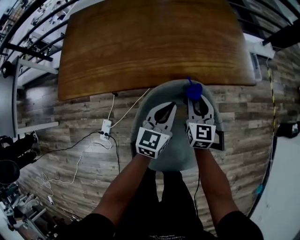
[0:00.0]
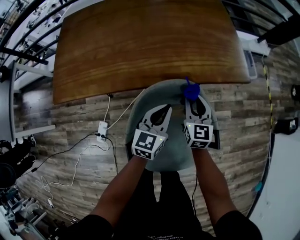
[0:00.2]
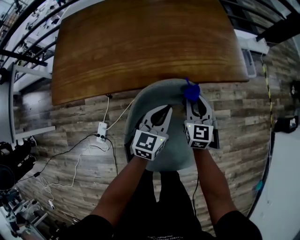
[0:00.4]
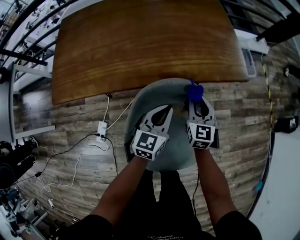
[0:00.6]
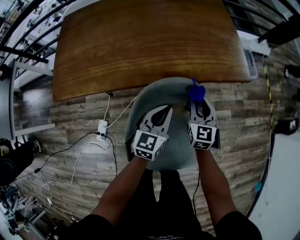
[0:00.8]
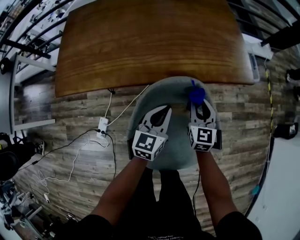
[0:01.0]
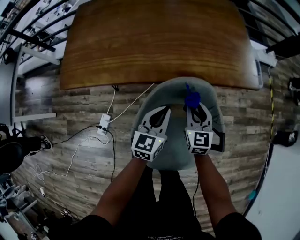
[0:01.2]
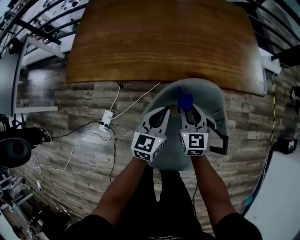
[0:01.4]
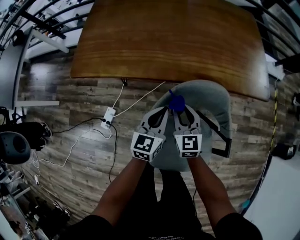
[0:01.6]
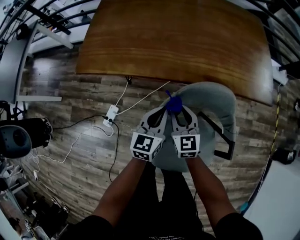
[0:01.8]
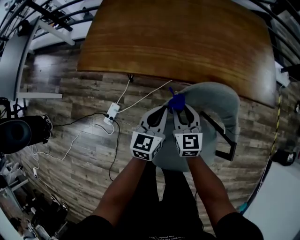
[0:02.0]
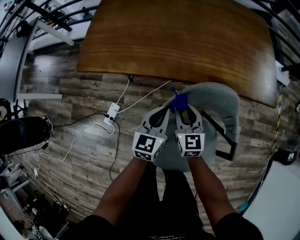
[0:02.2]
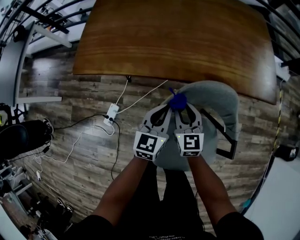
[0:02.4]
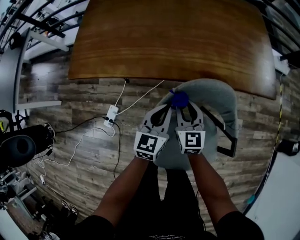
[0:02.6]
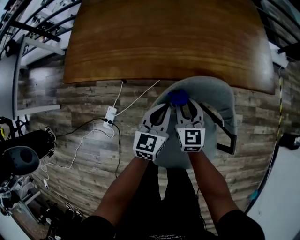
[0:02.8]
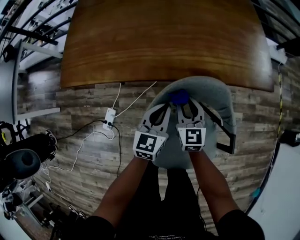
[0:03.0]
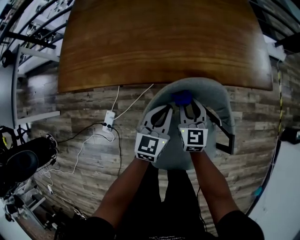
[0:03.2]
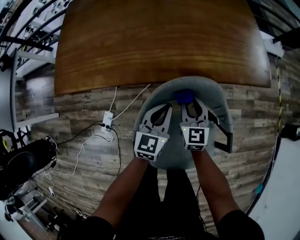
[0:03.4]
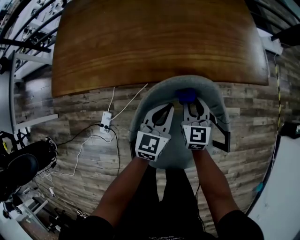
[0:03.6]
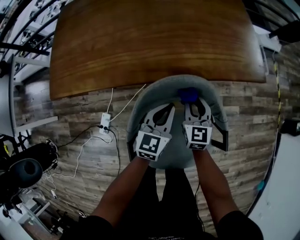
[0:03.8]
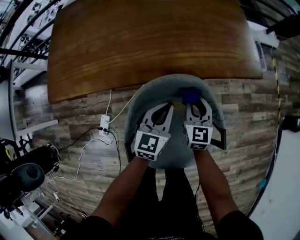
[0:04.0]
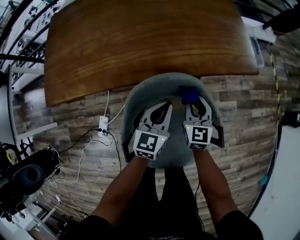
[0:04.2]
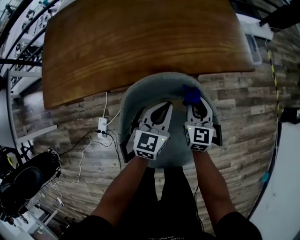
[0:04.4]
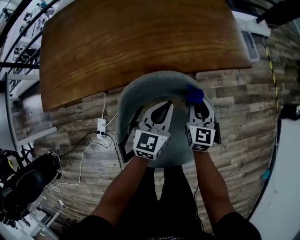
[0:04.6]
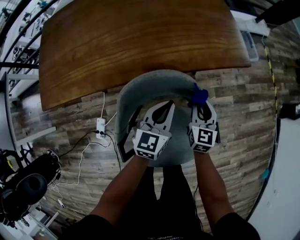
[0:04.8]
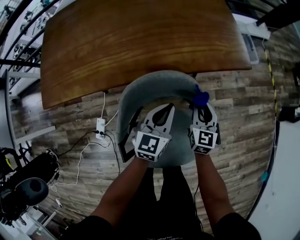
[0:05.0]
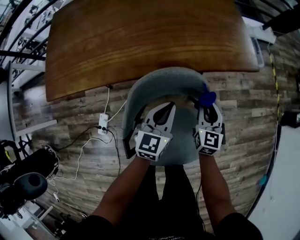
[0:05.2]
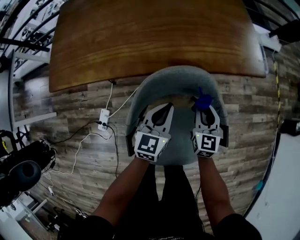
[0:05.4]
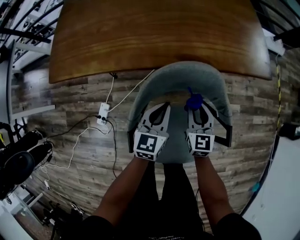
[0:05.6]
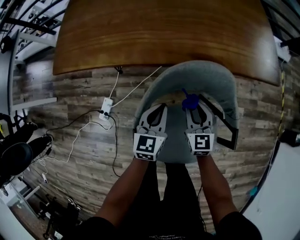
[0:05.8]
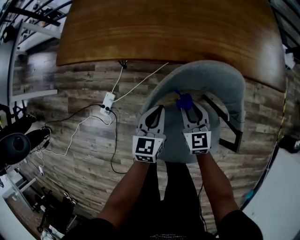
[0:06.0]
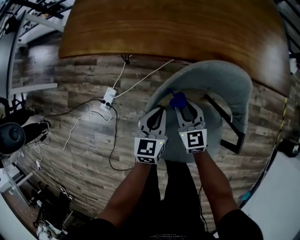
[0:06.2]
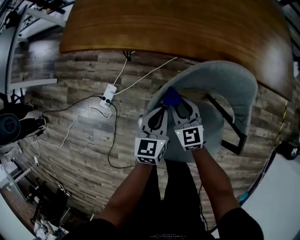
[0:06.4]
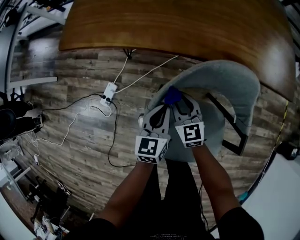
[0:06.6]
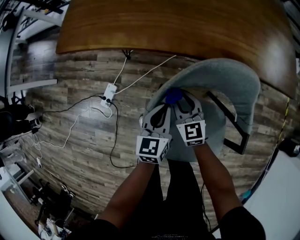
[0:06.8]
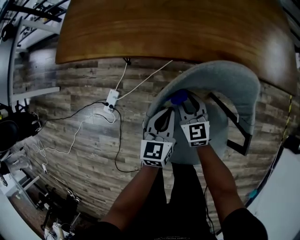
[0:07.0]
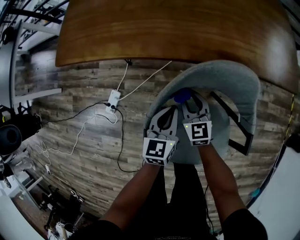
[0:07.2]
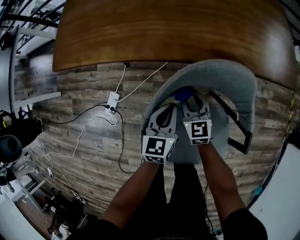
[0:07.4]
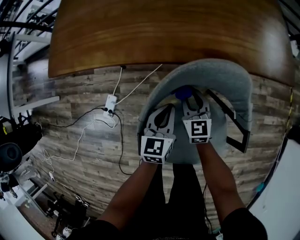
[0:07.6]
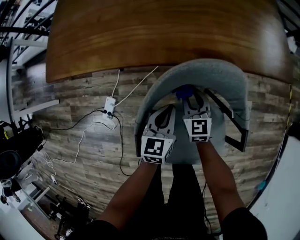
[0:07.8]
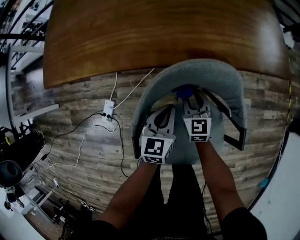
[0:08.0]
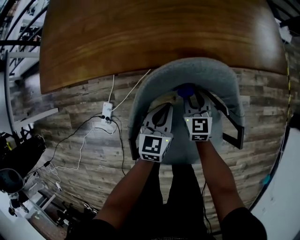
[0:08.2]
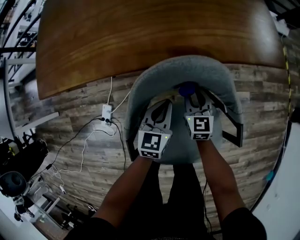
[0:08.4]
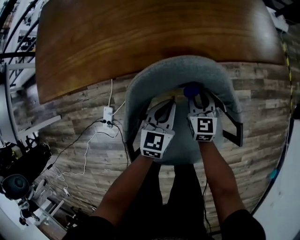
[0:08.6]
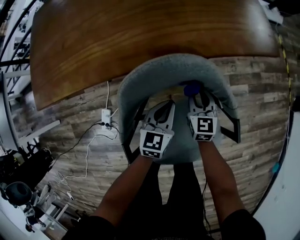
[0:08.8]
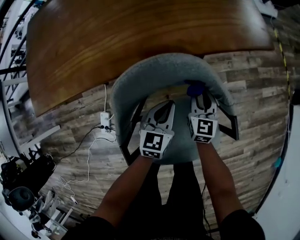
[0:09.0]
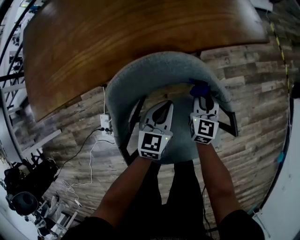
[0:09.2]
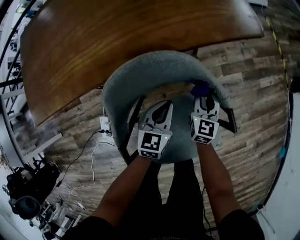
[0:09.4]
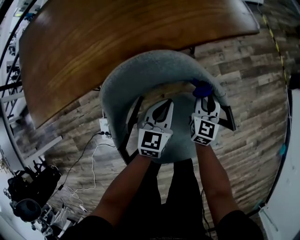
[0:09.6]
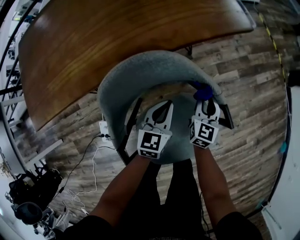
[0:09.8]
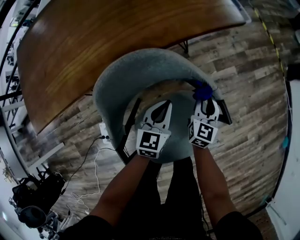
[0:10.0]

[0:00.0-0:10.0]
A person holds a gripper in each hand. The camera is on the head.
0:00.0 to 0:01.4: The left gripper travels to the left by roughly 5 cm. Meanwhile the right gripper moves to the left and backward, approximately 10 cm.
0:01.4 to 0:02.8: The left gripper goes to the left and returns, some 10 cm each way. Meanwhile the right gripper is displaced to the left by approximately 5 cm.
0:02.8 to 0:04.2: Both grippers travel together to the right, roughly 15 cm.
0:04.2 to 0:05.8: Both grippers travel together to the left and backward, roughly 10 cm.
0:05.8 to 0:07.2: The right gripper heads to the left, covering about 10 cm.
0:07.2 to 0:08.6: The grippers both shift to the right by roughly 15 cm. The left gripper changes its angle by some 20 degrees. The right gripper turns by about 20 degrees.
0:08.6 to 0:10.0: The right gripper moves approximately 20 cm, and rotates approximately 40 degrees. Meanwhile the left gripper ends up roughly 10 cm from where it was.

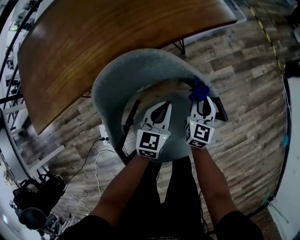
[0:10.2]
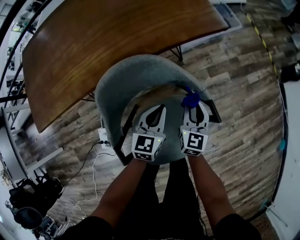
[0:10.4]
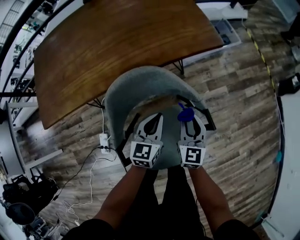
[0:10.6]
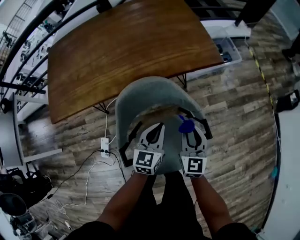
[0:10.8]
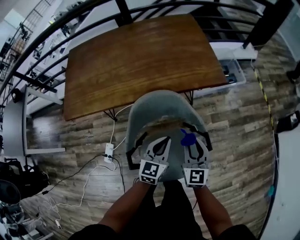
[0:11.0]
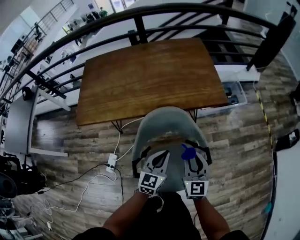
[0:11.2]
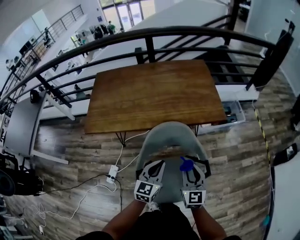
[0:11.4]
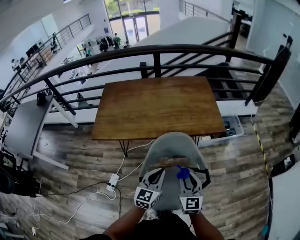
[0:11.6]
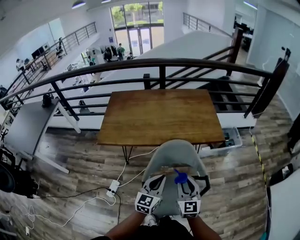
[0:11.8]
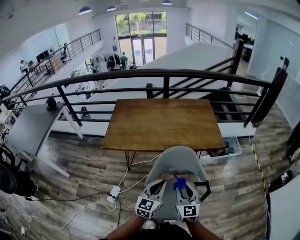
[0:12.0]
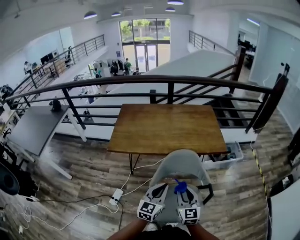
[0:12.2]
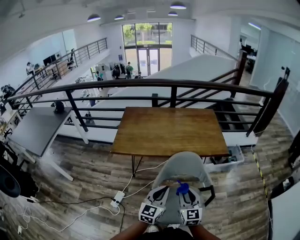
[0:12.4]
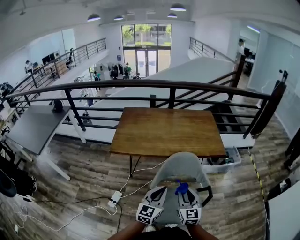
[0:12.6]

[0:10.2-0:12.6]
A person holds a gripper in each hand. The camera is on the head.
0:10.2 to 0:11.4: Both grippers travel together upward, about 25 cm. The right gripper changes its angle by about 40 degrees. The left gripper turns by about 20 degrees.
0:11.4 to 0:12.6: The right gripper moves to the left, backward and upward, about 20 cm, while the left gripper shifts some 20 cm backward, upward and to the left.

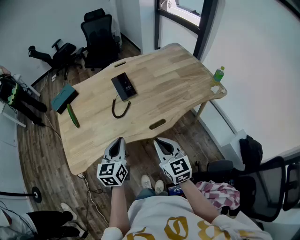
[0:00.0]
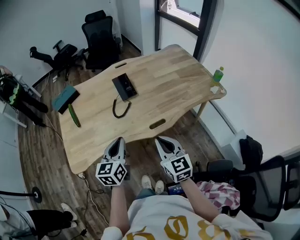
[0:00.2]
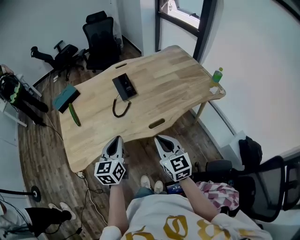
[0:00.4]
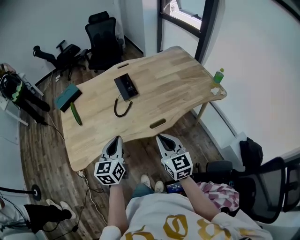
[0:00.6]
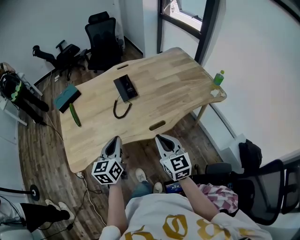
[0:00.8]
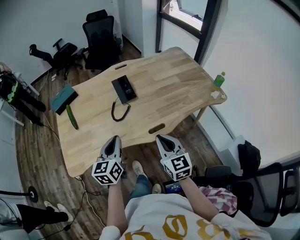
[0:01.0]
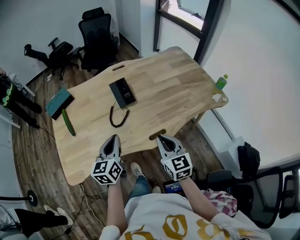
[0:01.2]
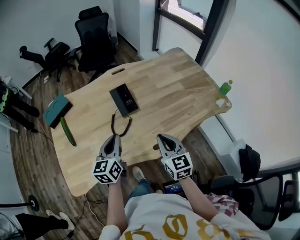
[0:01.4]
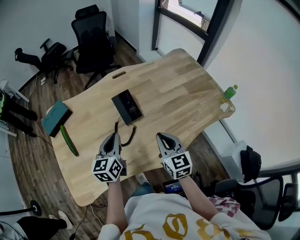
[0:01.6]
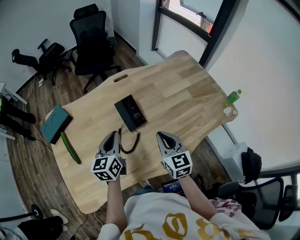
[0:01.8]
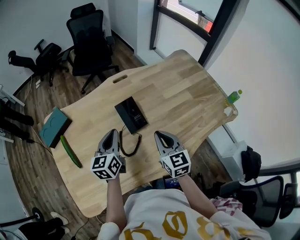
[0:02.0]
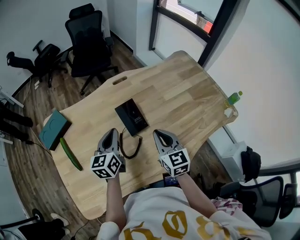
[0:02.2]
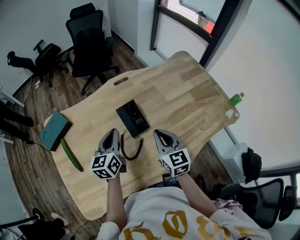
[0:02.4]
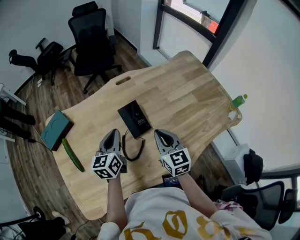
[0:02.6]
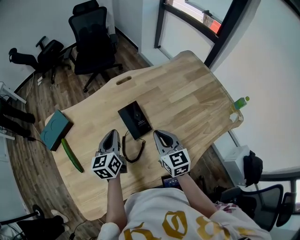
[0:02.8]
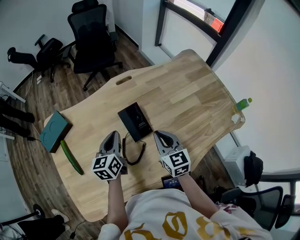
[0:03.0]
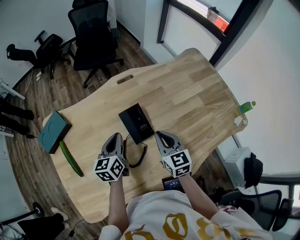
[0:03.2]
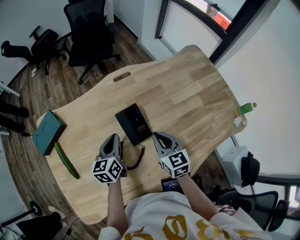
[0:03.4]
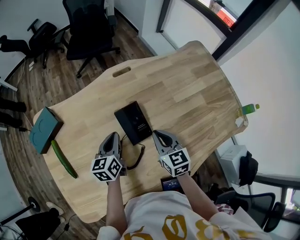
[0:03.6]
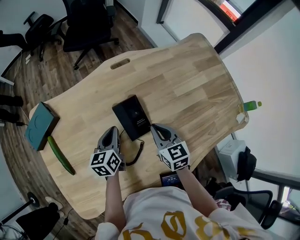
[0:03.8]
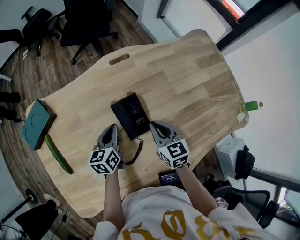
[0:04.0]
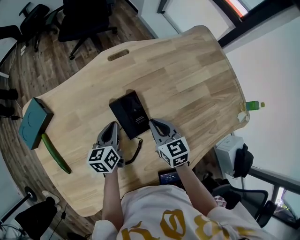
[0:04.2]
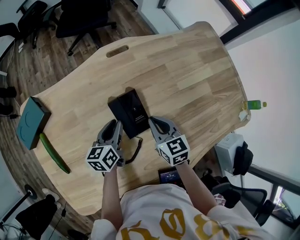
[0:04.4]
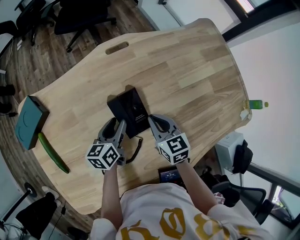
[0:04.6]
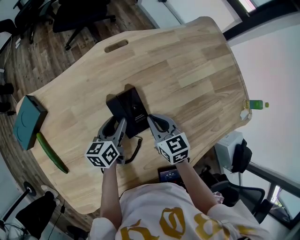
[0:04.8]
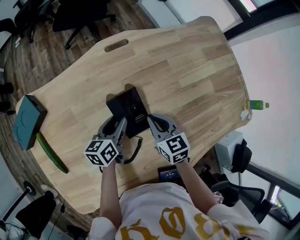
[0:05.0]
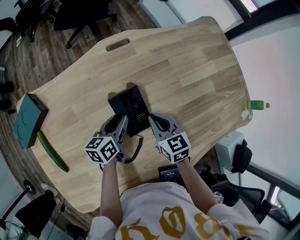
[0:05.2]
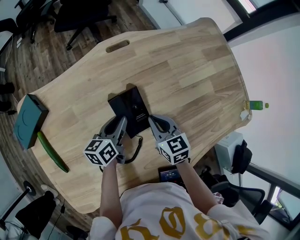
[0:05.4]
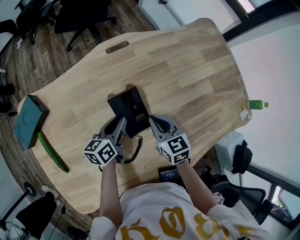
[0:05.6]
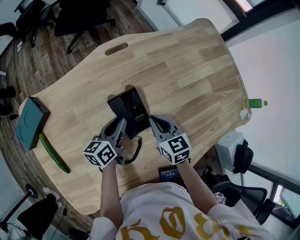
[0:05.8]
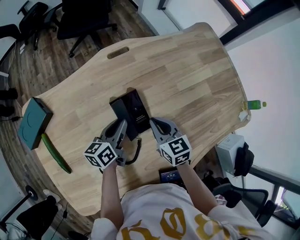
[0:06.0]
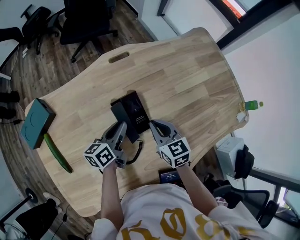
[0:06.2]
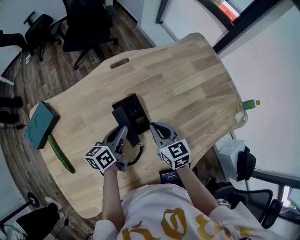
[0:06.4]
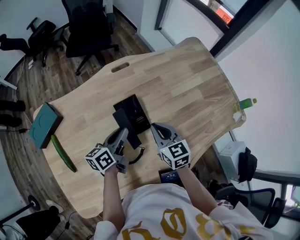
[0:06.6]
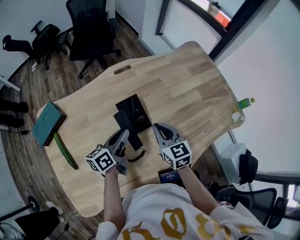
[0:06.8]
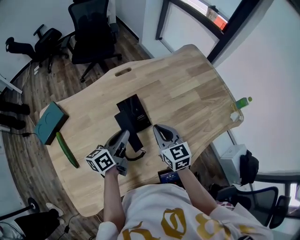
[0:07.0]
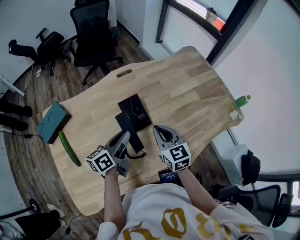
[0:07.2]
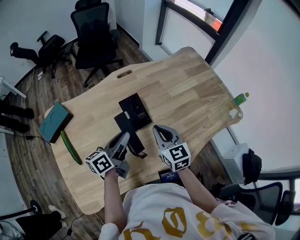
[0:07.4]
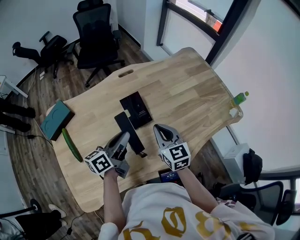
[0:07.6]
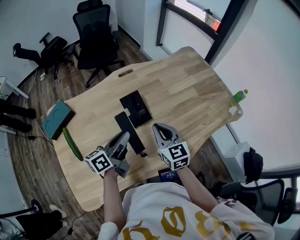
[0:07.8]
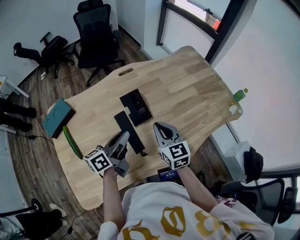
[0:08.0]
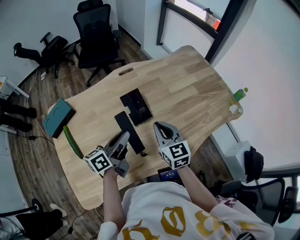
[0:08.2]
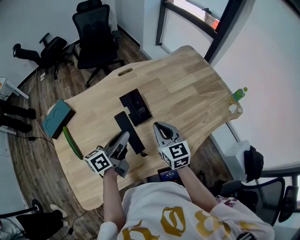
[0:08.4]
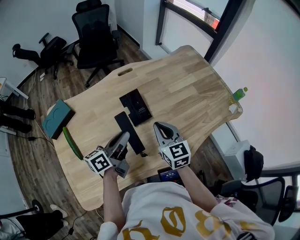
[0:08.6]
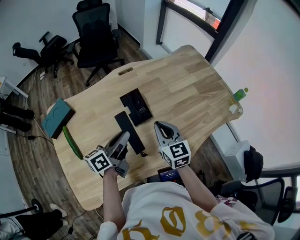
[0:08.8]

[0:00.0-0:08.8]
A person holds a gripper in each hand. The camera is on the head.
0:00.0 to 0:01.4: Both grippers travel together forward, roughly 15 cm.
0:01.4 to 0:03.0: The grippers both shift forward by some 20 cm.
0:03.0 to 0:04.4: The right gripper heads downward and forward, covering roughly 10 cm. Meanwhile the left gripper shifts about 10 cm downward.
0:04.4 to 0:05.8: The left gripper opens and closes again.
0:05.8 to 0:07.4: Both grippers travel together upward and backward, about 15 cm.
0:07.4 to 0:08.8: The grippers move only a little.

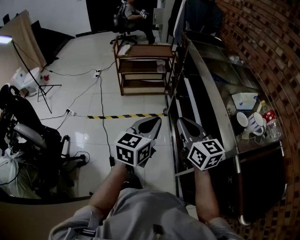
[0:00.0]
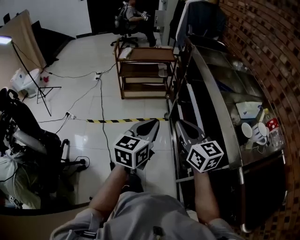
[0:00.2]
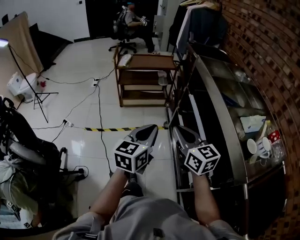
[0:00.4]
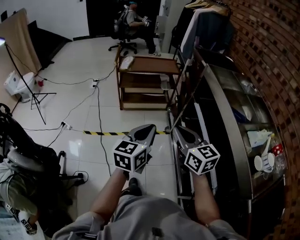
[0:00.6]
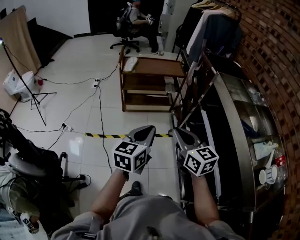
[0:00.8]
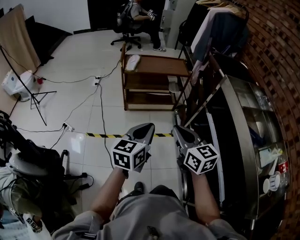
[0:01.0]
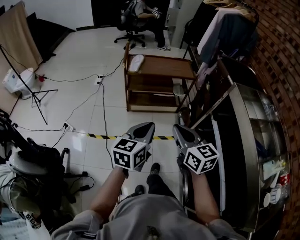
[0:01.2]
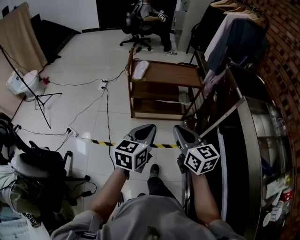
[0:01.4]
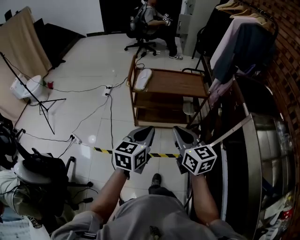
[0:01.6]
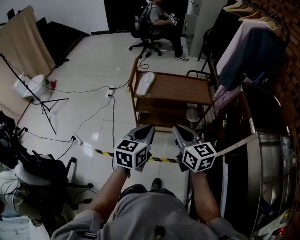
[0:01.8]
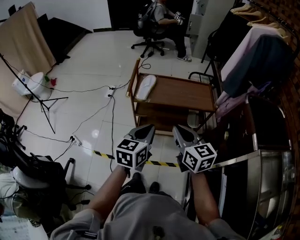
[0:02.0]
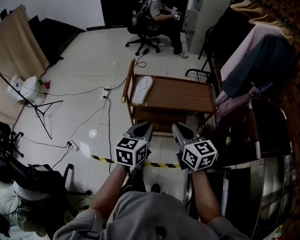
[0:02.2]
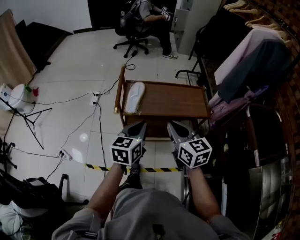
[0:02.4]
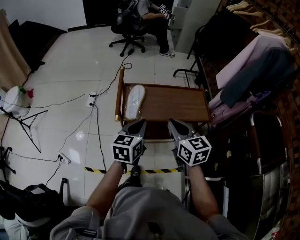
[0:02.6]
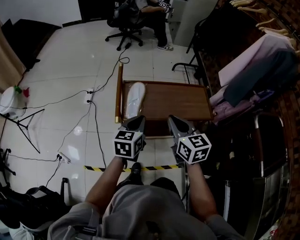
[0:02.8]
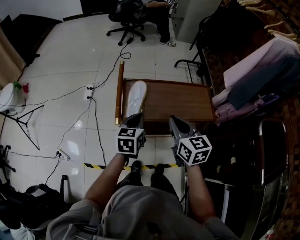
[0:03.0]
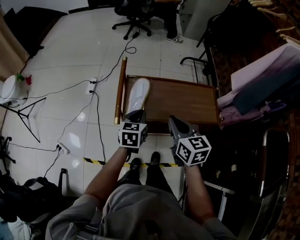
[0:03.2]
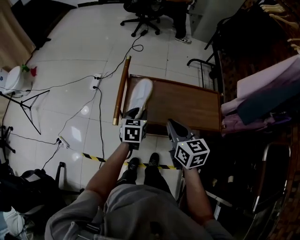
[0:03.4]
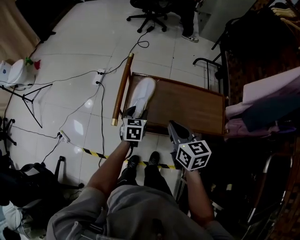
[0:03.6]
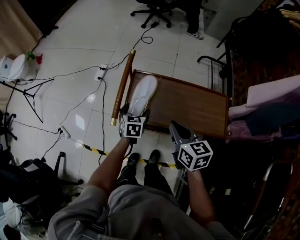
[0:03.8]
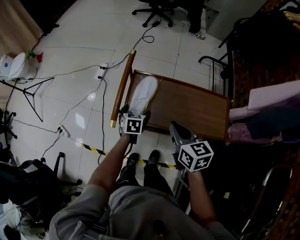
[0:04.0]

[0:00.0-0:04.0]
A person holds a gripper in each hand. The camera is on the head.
0:00.0 to 0:01.4: The pair of grippers is taken forward and to the left, some 50 cm.
0:01.4 to 0:02.6: Both grippers are carried forward, roughly 40 cm.
0:02.6 to 0:04.0: The right gripper shifts some 20 cm forward and downward. Meanwhile the left gripper goes some 35 cm downward and forward, swivels approximately 30 degrees, and opens.
